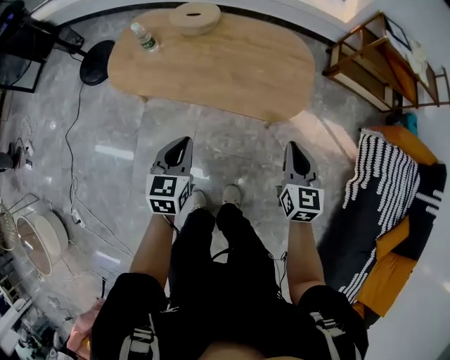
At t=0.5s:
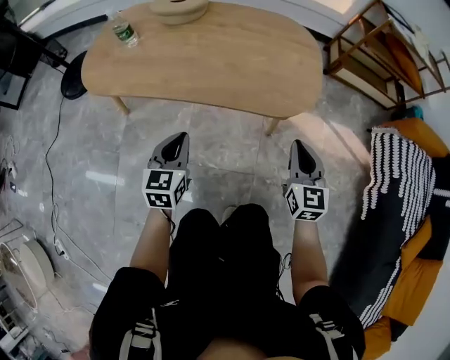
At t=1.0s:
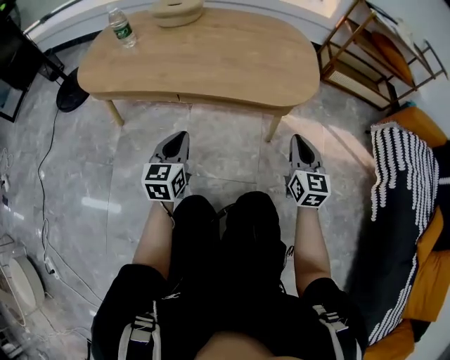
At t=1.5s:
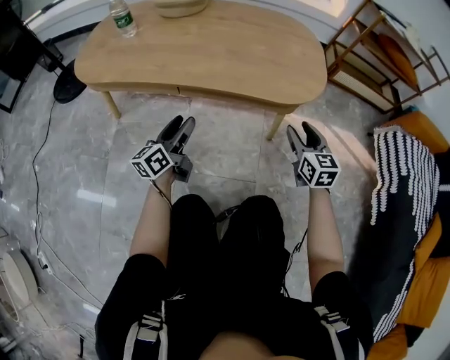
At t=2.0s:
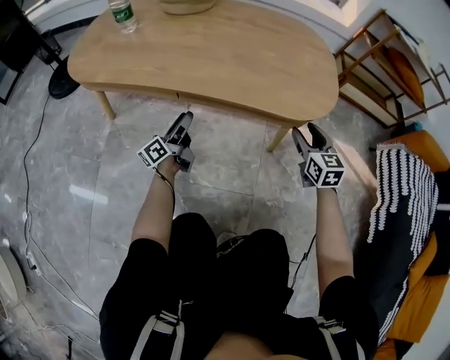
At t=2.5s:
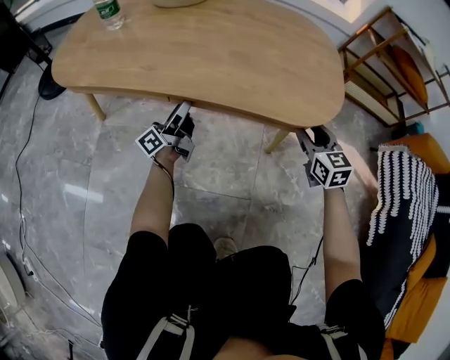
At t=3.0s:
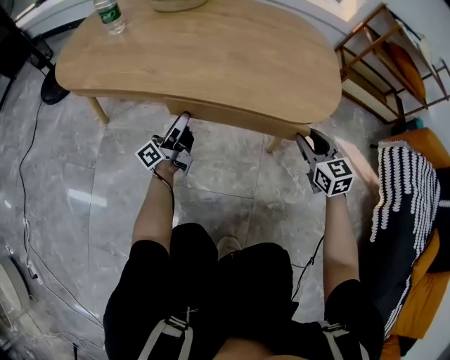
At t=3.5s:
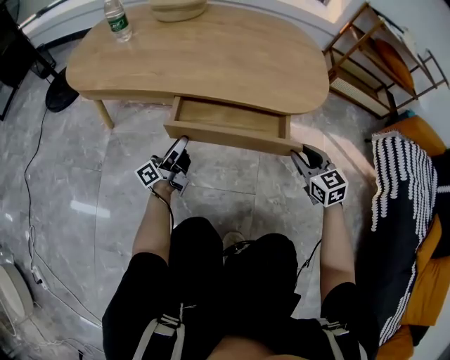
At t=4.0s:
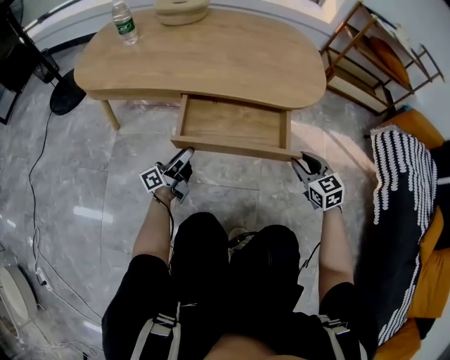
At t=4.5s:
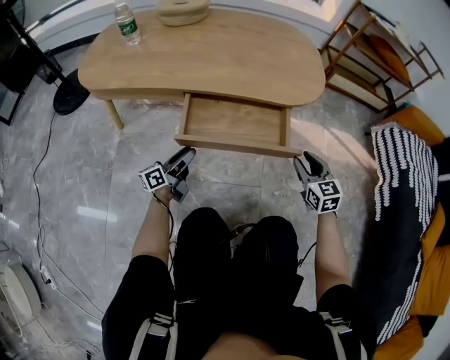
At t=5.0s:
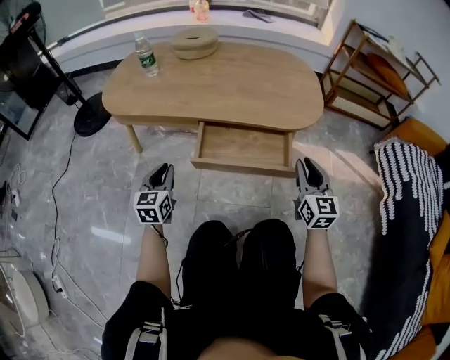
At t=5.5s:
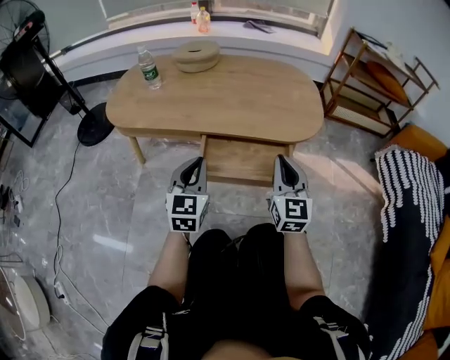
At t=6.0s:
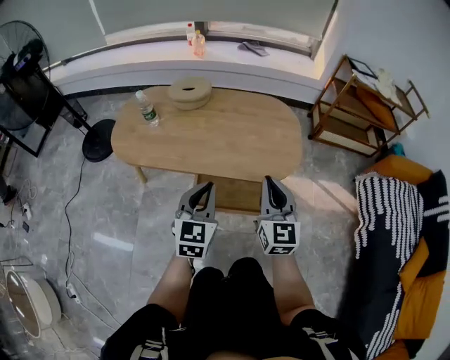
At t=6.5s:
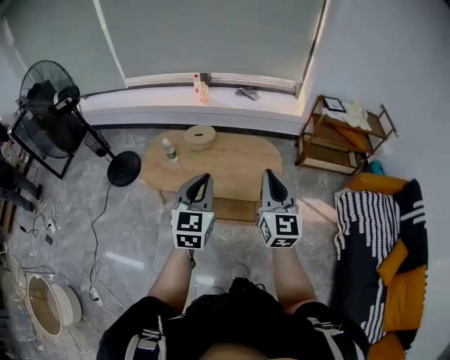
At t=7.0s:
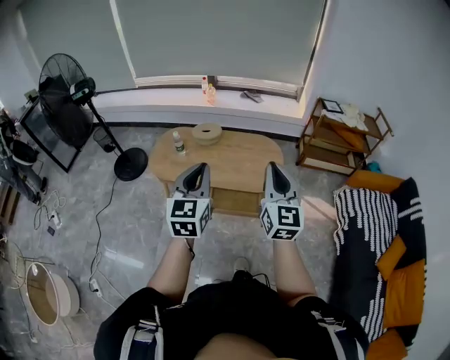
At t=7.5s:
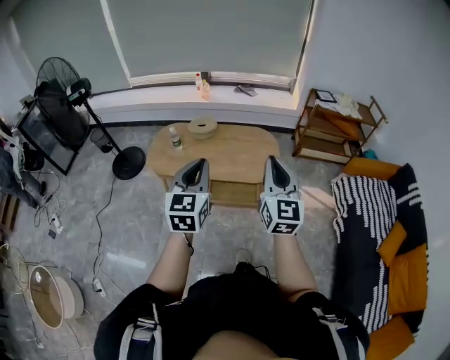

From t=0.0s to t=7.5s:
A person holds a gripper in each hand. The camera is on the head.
From t=0.0s to t=2.0s: Both grippers move downward, about 40 cm. The right gripper opens its fingers, while the left gripper angles its fingers upward, by roughly 40 degrees, and opens up.
From t=2.0s to t=4.0s: Both grippers travel together backward, approximately 15 cm. The right gripper closes up.
From t=4.0s to t=5.5s: The right gripper heads upward and to the left, covering some 25 cm, tilts its fingers some 30 degrees upward, and closes; the left gripper goes some 25 cm upward, rolls clockwise, seen from behind, by some 70 degrees, and closes.
From t=5.5s to t=7.5s: The two grippers go some 70 cm upward.

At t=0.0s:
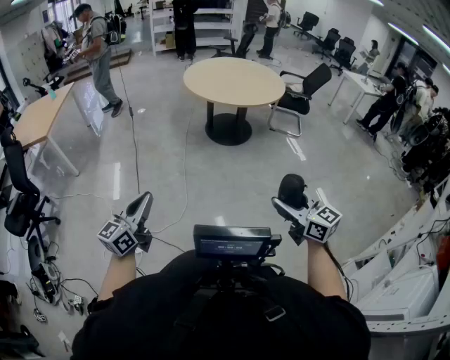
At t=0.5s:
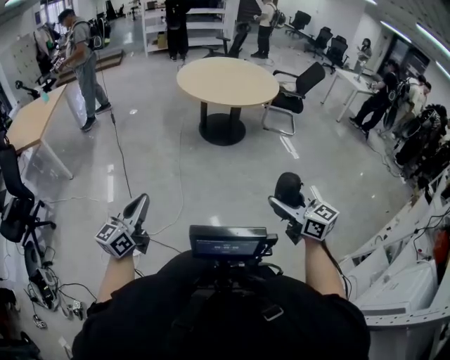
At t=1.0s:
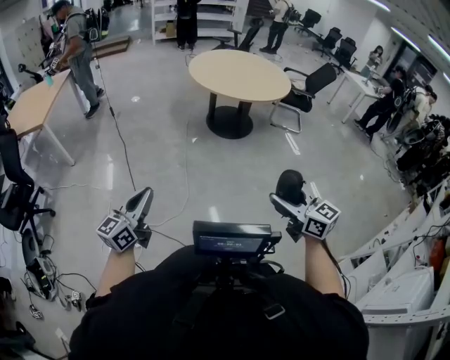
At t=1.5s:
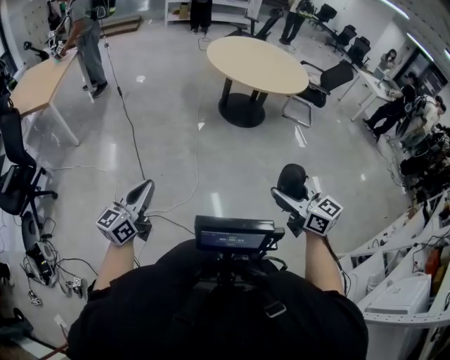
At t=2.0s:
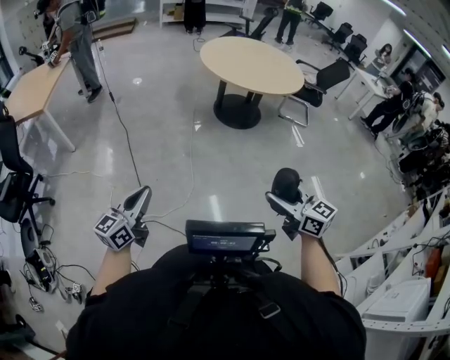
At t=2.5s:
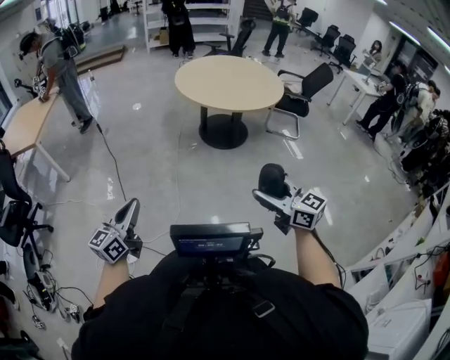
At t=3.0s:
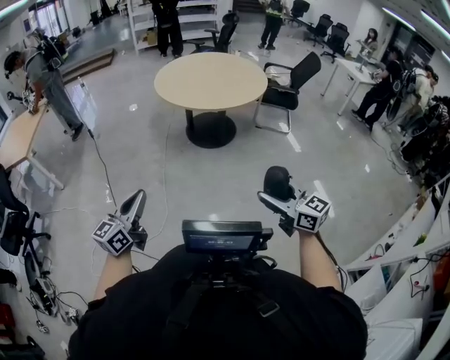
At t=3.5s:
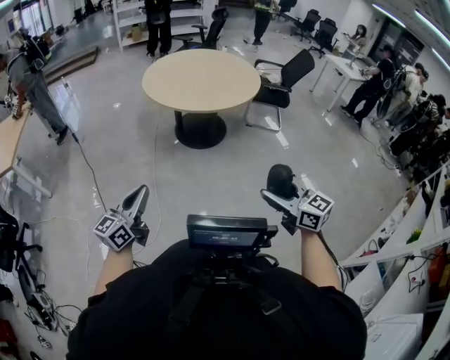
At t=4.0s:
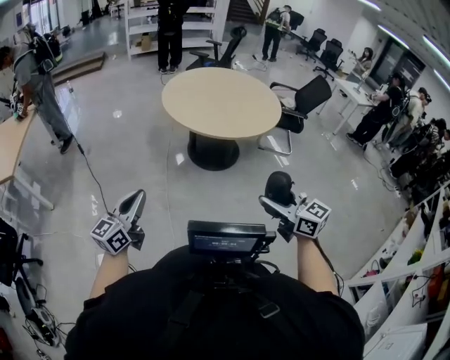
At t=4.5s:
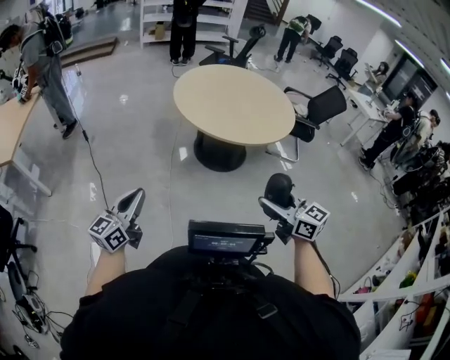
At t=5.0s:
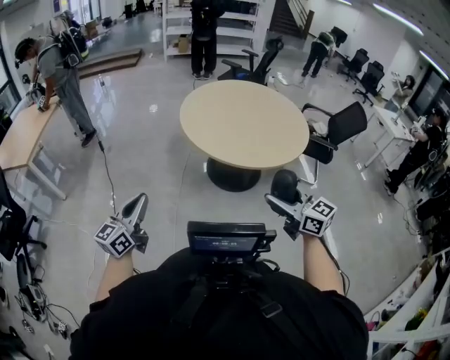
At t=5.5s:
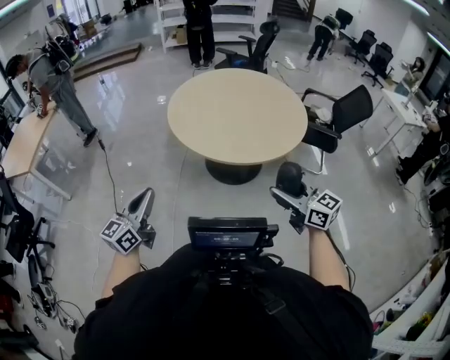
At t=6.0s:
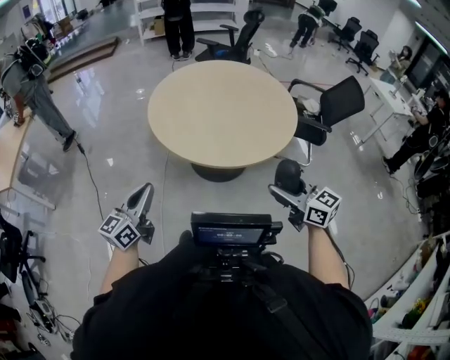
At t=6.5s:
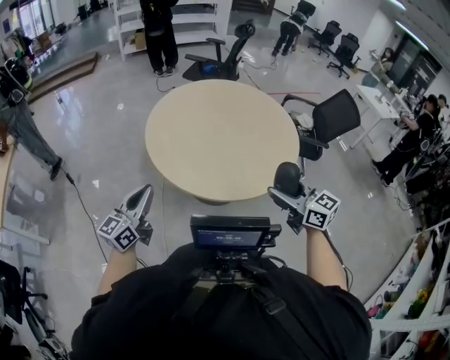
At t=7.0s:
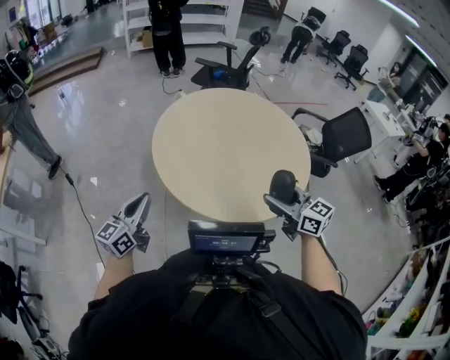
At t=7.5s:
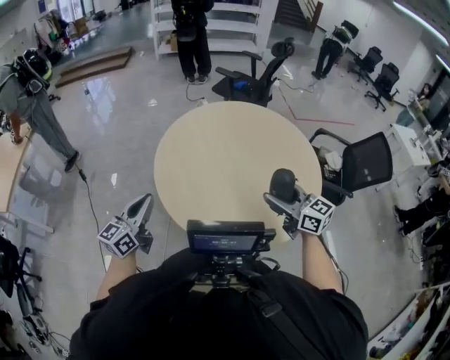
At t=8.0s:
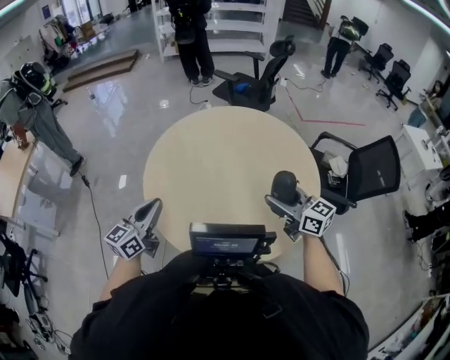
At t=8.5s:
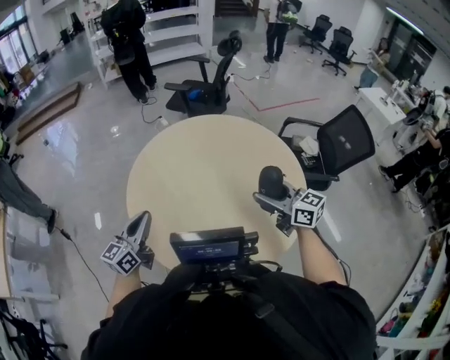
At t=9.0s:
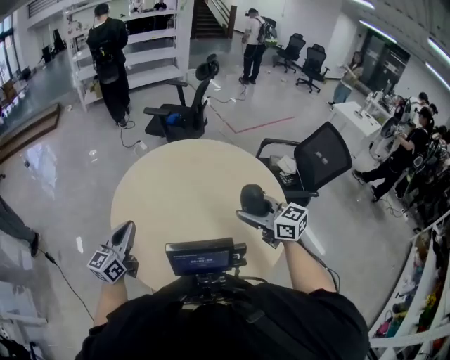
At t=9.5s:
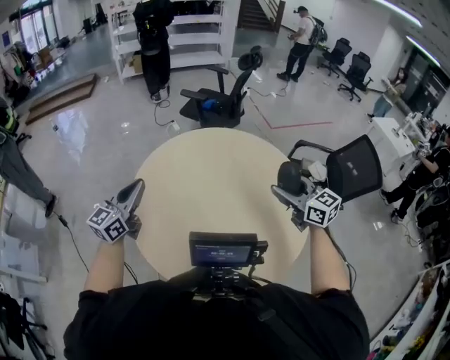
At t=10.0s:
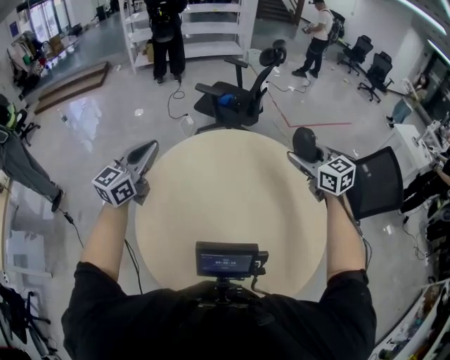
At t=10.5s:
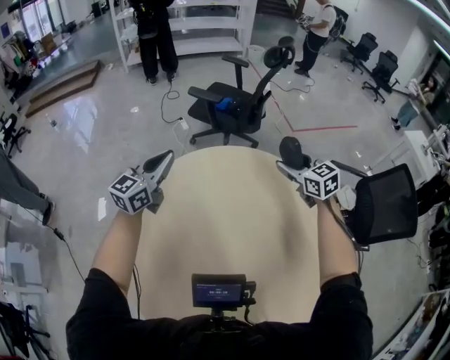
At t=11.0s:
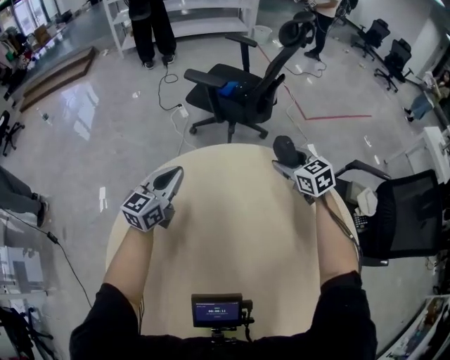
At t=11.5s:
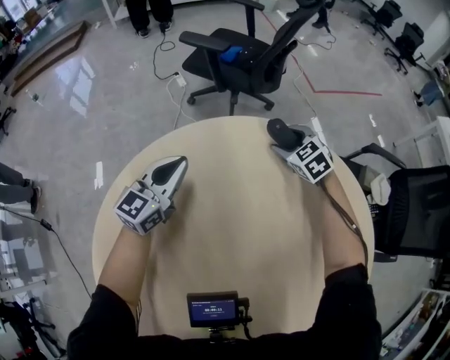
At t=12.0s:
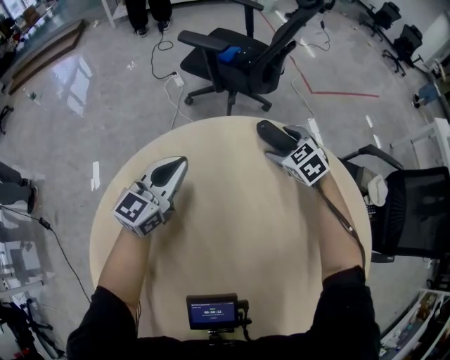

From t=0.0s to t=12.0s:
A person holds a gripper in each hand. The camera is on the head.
From t=0.0s to t=2.0s: The grippers both shift to the left and forward by roughly 20 cm.
From t=2.0s to t=4.0s: The grippers both shift forward and to the right by some 35 cm.
From t=4.0s to t=6.0s: Both grippers move forward and to the right, roughly 40 cm.
From t=6.0s to t=8.0s: Both grippers travel together forward, approximately 40 cm.
From t=8.0s to t=10.0s: The grippers both shift forward by roughly 35 cm. The right gripper rotates roughly 30 degrees.
From t=10.0s to t=12.0s: The grippers both shift downward and forward by roughly 50 cm. The right gripper tips its fingers downward by roughly 30 degrees.

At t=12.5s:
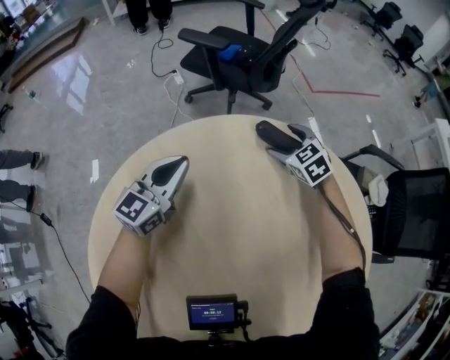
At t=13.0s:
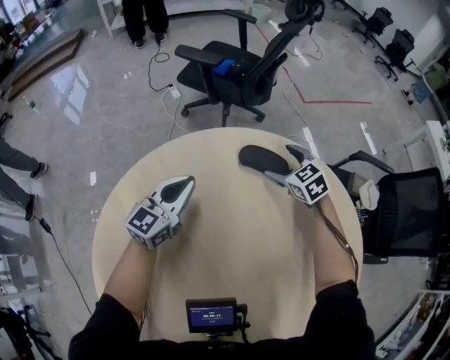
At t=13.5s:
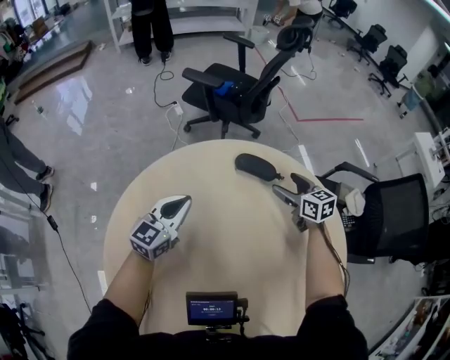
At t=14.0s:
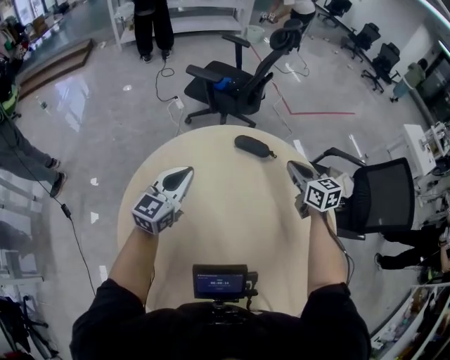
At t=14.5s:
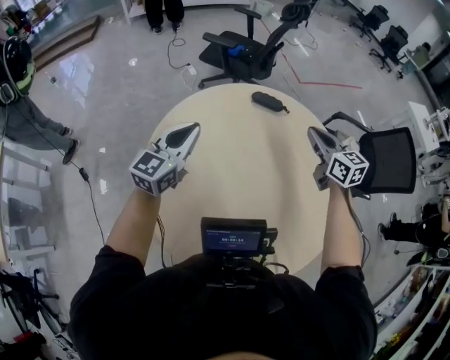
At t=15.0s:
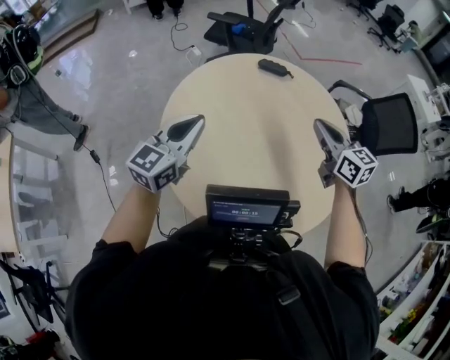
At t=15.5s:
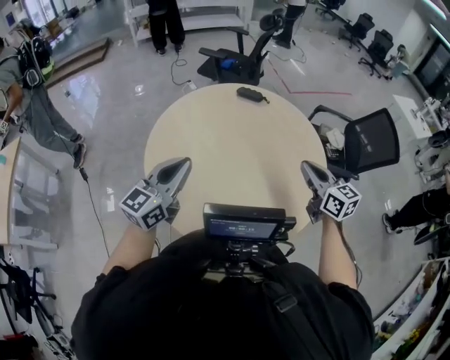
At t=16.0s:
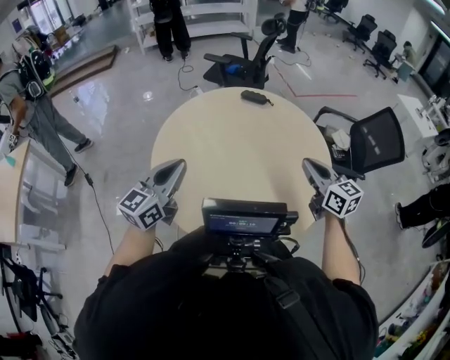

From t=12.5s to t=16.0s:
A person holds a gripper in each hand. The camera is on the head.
From t=12.5s to t=14.5s: The two grippers go roughly 40 cm upward and backward. The right gripper swivels approximately 40 degrees, and closes up.
From t=14.5s to t=16.0s: Both grippers travel together backward, roughly 30 cm.

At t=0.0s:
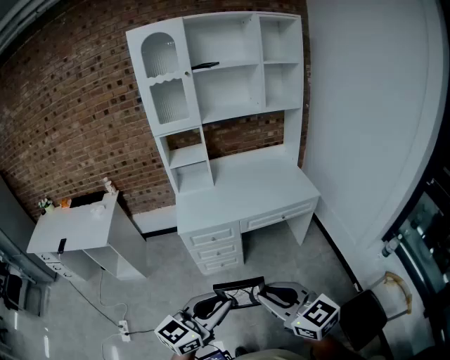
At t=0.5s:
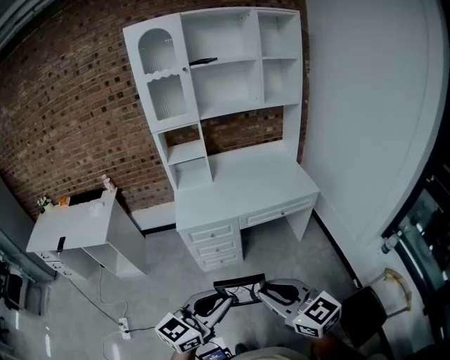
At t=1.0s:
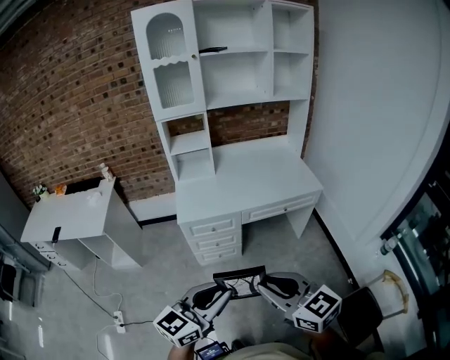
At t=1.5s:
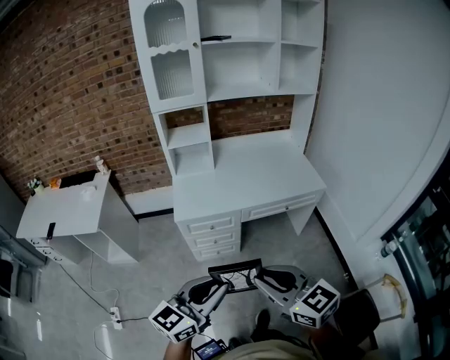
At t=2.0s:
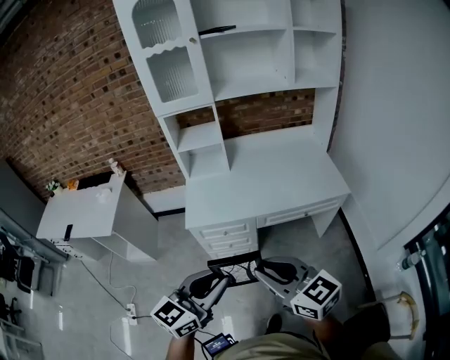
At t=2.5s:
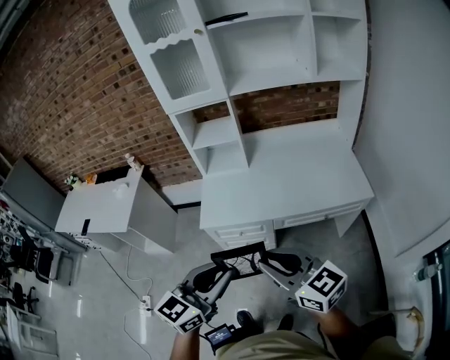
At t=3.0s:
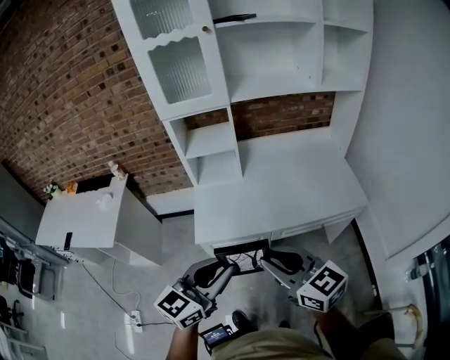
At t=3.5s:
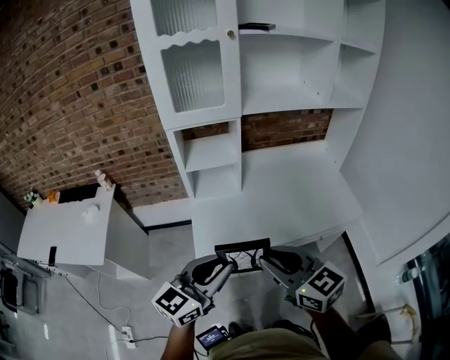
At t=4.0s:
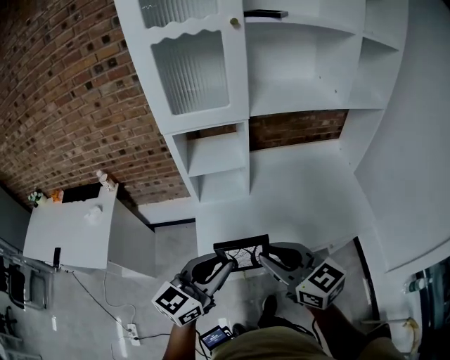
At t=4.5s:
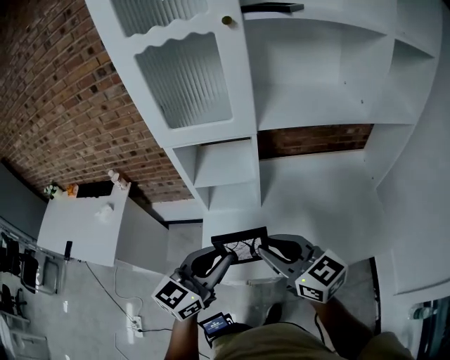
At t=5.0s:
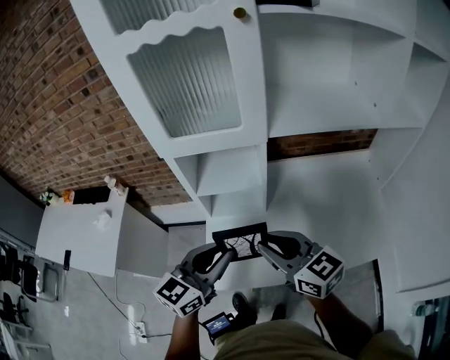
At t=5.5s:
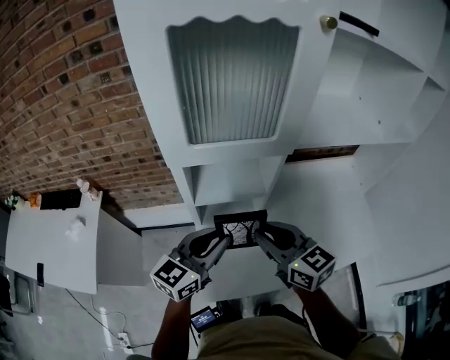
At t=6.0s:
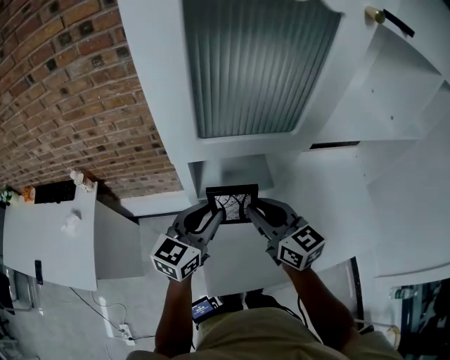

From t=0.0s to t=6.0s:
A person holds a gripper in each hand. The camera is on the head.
From t=0.0s to t=2.0s: Both grippers travel together forward, about 20 cm.
From t=2.0s to t=4.0s: Both grippers move forward, about 35 cm.
From t=4.0s to t=6.0s: Both grippers travel together forward, about 35 cm.
